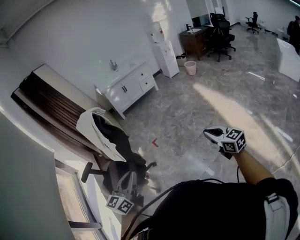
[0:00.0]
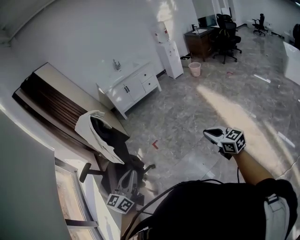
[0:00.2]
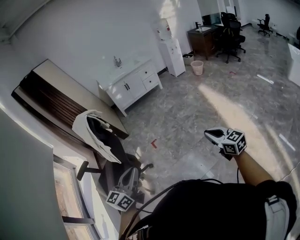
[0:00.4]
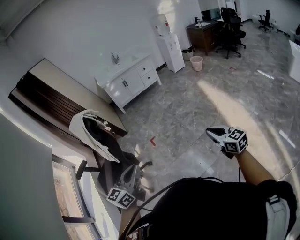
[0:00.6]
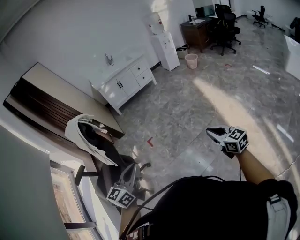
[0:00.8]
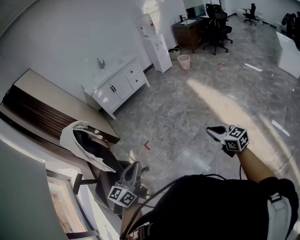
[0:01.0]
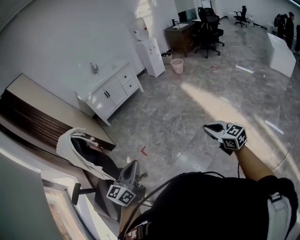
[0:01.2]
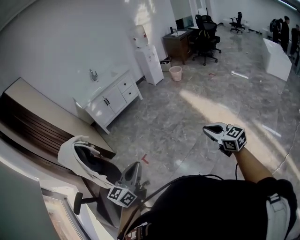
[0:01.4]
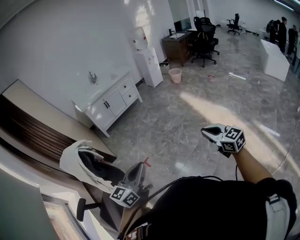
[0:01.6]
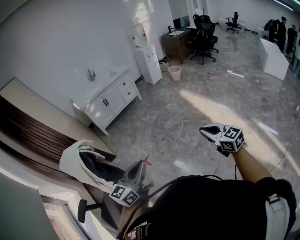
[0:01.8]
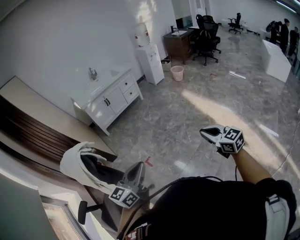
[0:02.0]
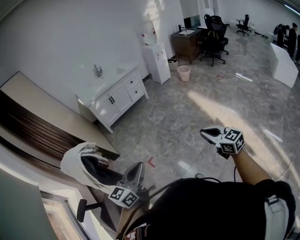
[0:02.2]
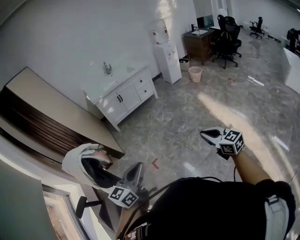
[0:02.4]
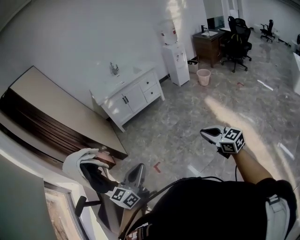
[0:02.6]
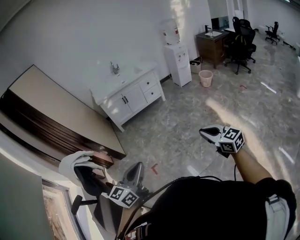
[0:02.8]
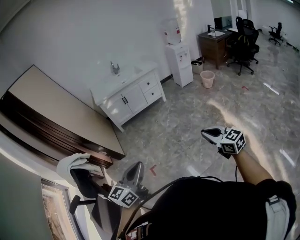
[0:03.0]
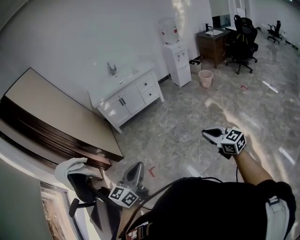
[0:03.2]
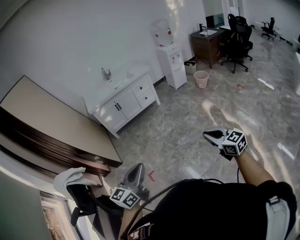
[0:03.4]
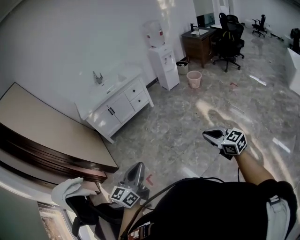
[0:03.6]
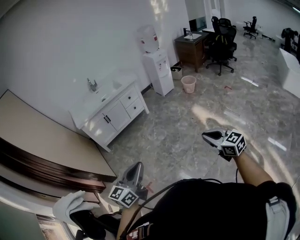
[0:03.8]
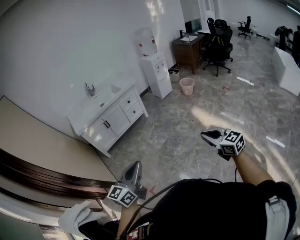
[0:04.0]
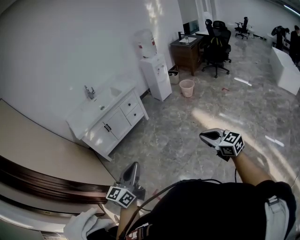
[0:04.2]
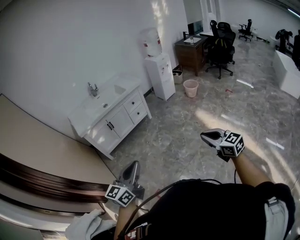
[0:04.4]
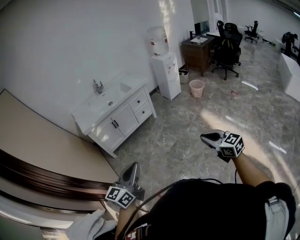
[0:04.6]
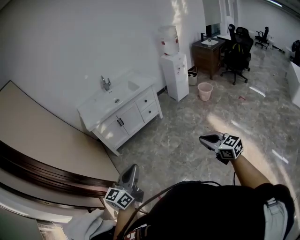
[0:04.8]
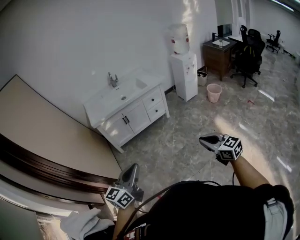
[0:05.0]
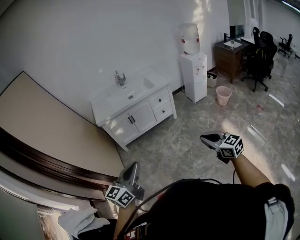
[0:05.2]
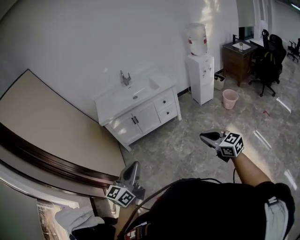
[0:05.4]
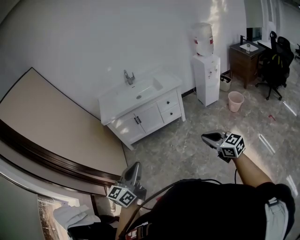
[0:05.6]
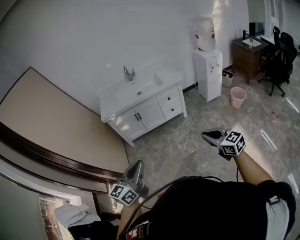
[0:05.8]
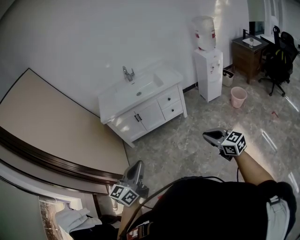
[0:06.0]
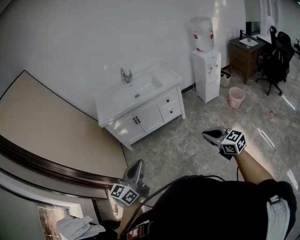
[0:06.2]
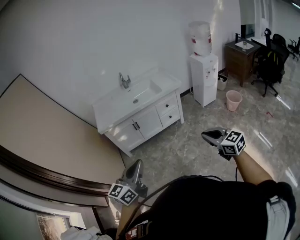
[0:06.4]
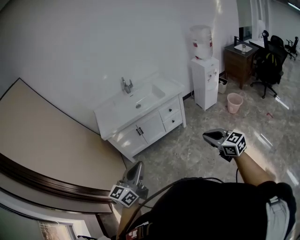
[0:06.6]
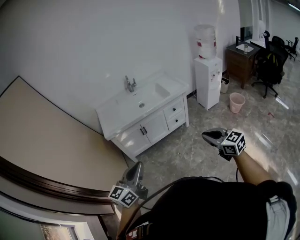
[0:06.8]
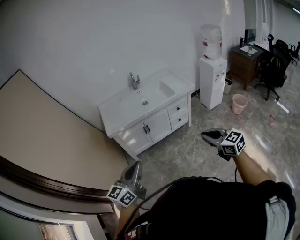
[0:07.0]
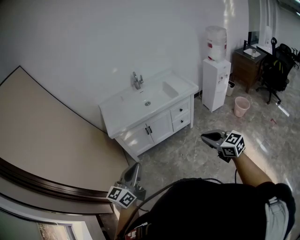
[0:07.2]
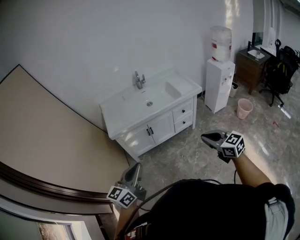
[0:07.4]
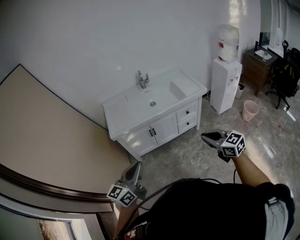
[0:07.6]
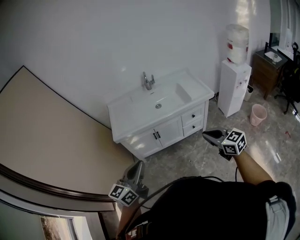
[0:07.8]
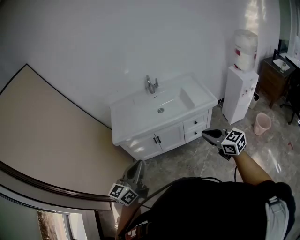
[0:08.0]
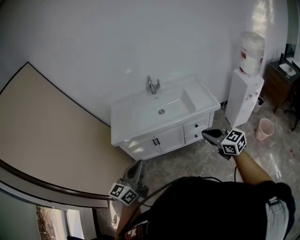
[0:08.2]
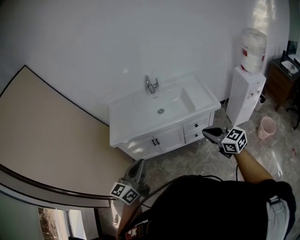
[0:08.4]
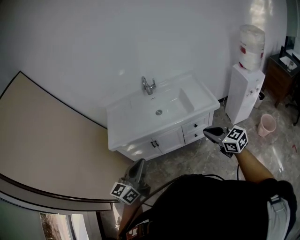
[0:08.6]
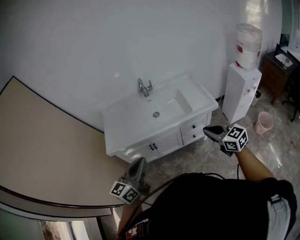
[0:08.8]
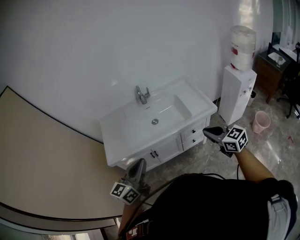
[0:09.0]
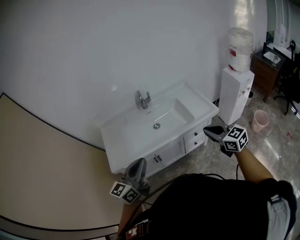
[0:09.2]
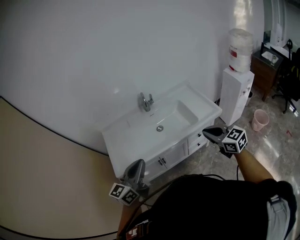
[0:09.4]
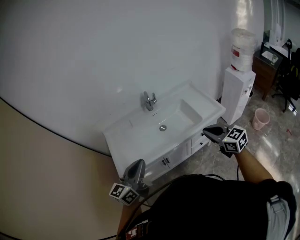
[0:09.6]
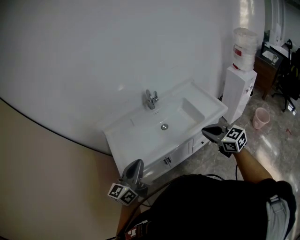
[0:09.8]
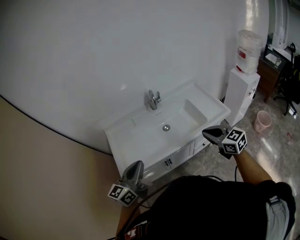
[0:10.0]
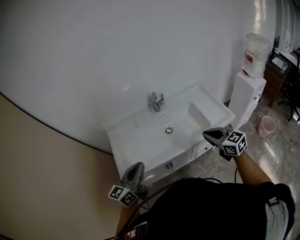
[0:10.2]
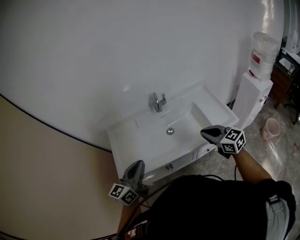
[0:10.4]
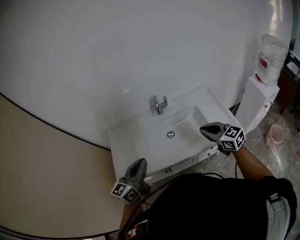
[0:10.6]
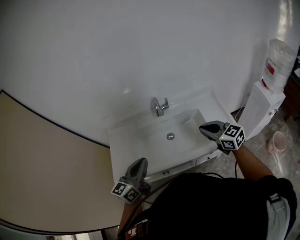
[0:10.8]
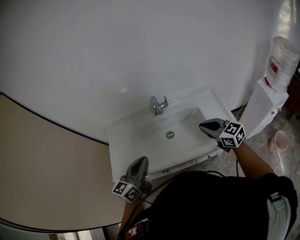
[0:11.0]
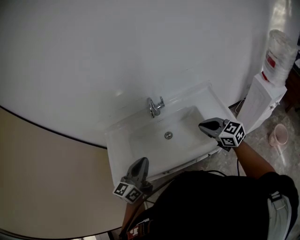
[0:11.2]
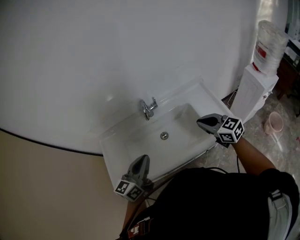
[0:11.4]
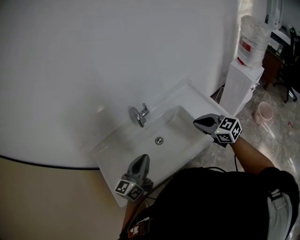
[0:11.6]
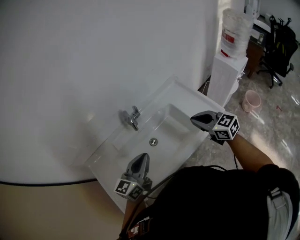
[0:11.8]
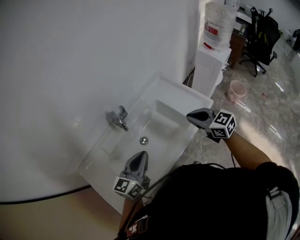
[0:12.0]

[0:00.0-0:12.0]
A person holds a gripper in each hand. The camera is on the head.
0:00.0 to 0:01.6: Both grippers travel together forward, about 30 cm.
0:01.6 to 0:03.0: The left gripper heads forward and to the right, covering roughly 25 cm. Meanwhile the right gripper heads forward, covering about 35 cm.
0:03.0 to 0:04.4: The left gripper heads forward, covering some 30 cm, while the right gripper moves forward and to the left, roughly 25 cm.
0:04.4 to 0:06.0: The right gripper changes place by roughly 35 cm, and changes its angle by some 30 degrees. The left gripper changes place by approximately 20 cm, and changes its angle by some 20 degrees.
0:06.0 to 0:07.6: The two grippers go approximately 35 cm forward and to the left.
0:07.6 to 0:09.0: The two grippers go roughly 30 cm forward and to the right.
0:09.0 to 0:10.4: The grippers both shift forward and to the left by about 25 cm.
0:10.4 to 0:12.0: The right gripper changes place by approximately 15 cm, and changes its angle by roughly 20 degrees. Meanwhile the left gripper moves about 25 cm, and swivels about 30 degrees.

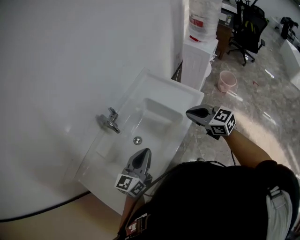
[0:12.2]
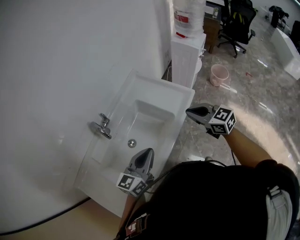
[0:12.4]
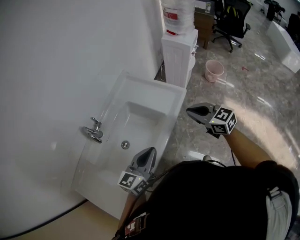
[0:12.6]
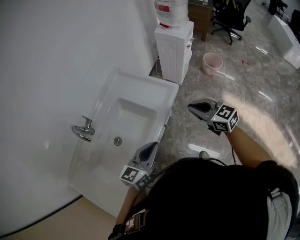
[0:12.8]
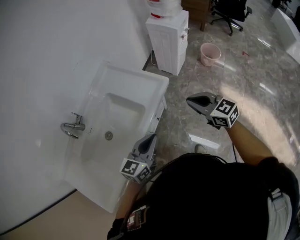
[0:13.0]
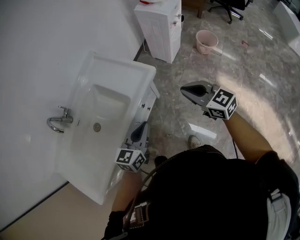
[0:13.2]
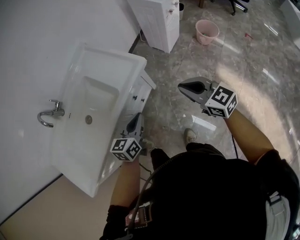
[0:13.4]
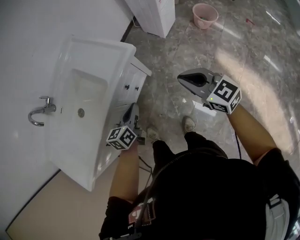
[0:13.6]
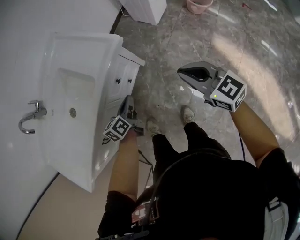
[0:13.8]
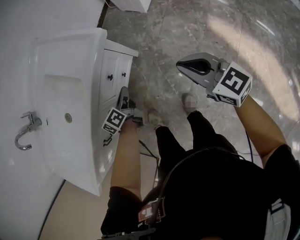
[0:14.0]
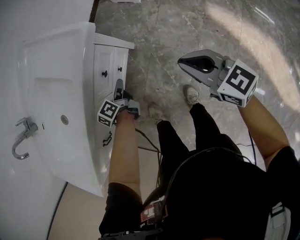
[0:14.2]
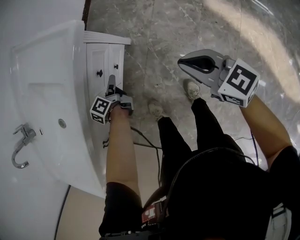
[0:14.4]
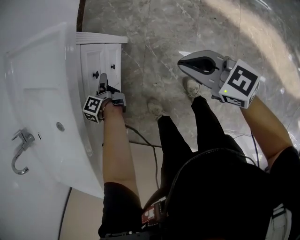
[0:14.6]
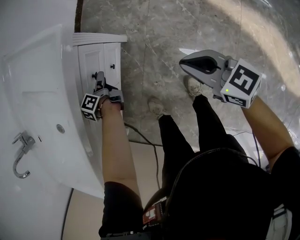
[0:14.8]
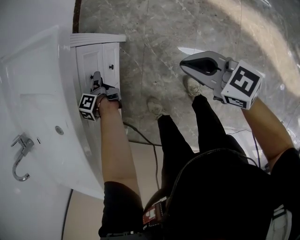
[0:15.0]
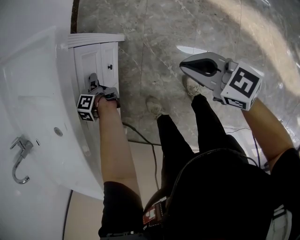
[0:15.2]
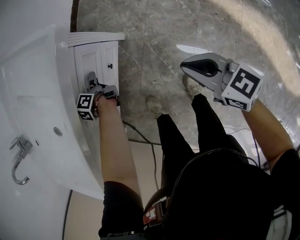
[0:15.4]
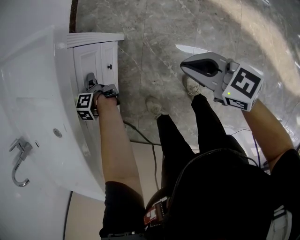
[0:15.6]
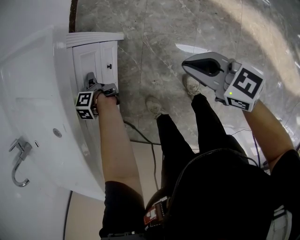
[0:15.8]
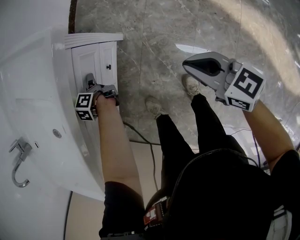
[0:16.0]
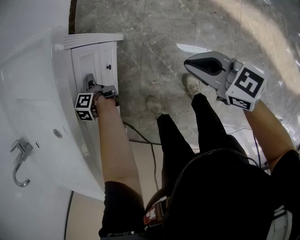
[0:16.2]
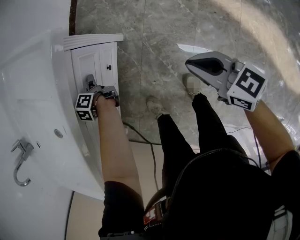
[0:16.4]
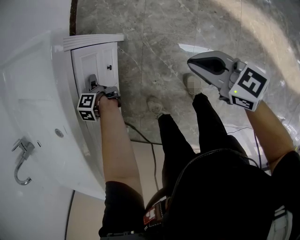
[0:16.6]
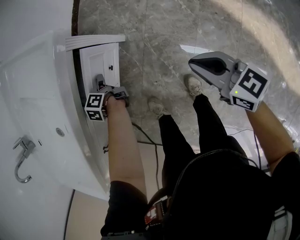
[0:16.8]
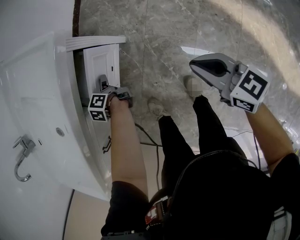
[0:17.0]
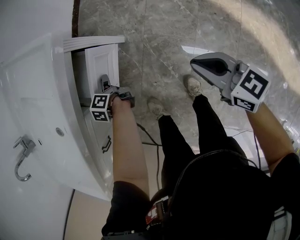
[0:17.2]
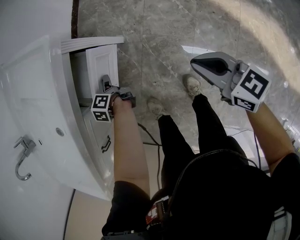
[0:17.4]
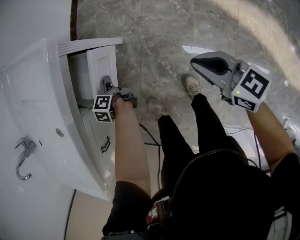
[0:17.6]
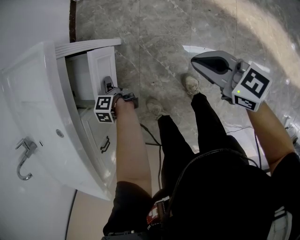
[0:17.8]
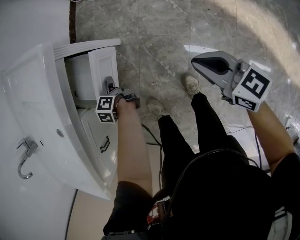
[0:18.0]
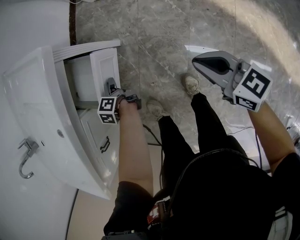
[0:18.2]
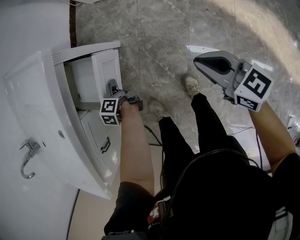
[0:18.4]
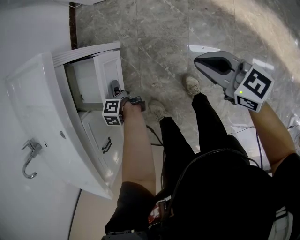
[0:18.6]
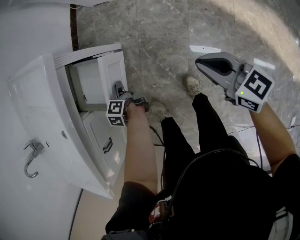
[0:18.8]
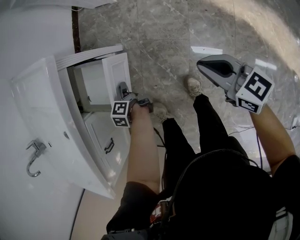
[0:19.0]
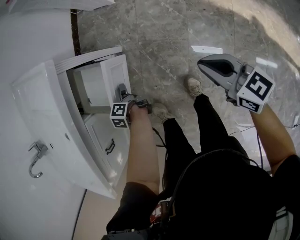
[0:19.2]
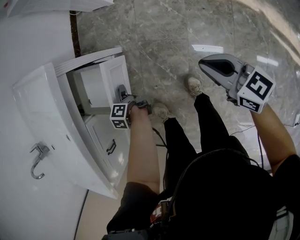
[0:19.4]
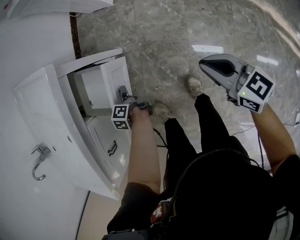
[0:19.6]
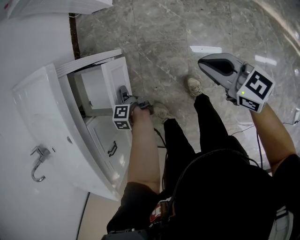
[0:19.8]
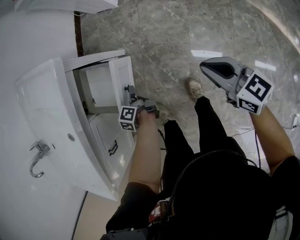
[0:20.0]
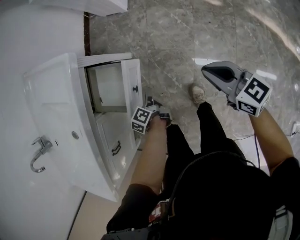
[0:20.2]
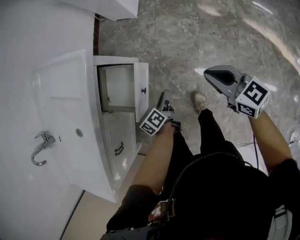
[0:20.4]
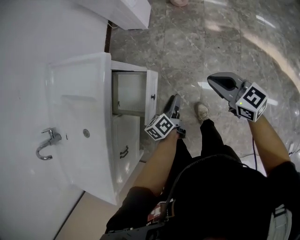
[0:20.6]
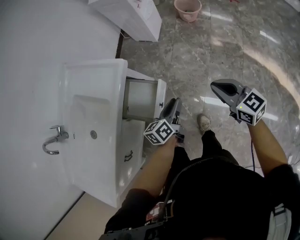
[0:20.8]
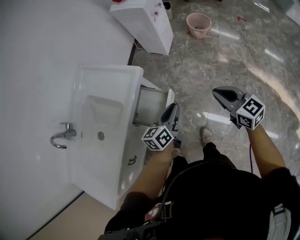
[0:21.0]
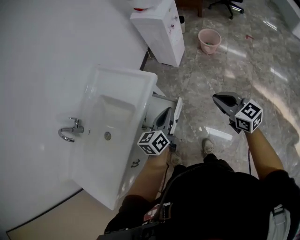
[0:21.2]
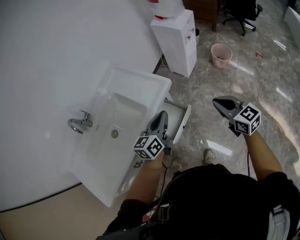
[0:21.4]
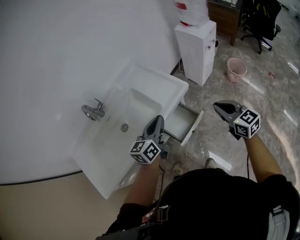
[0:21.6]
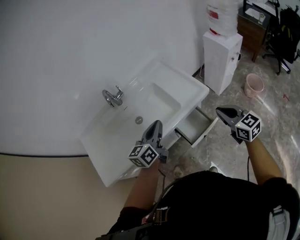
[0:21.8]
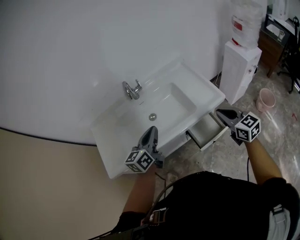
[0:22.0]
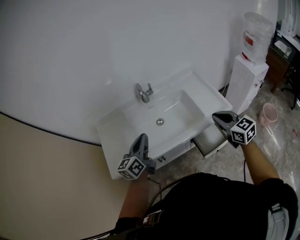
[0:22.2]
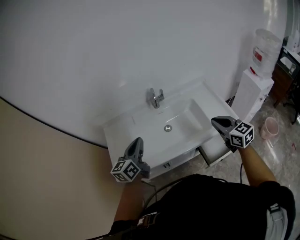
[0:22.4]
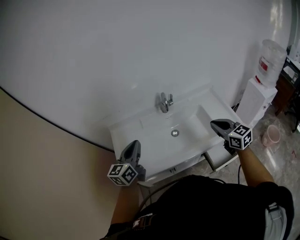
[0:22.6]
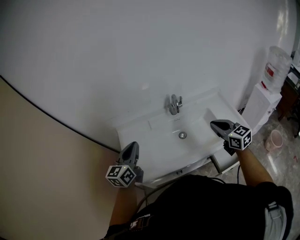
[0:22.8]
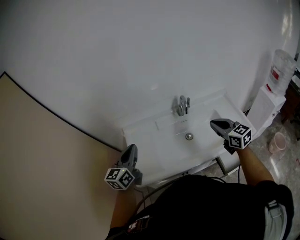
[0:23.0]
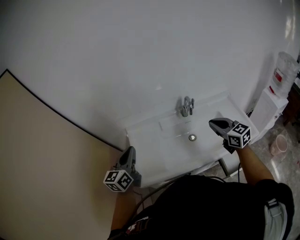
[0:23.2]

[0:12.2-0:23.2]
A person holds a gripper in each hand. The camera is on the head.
0:12.2 to 0:13.8: The two grippers go roughly 50 cm to the right and downward. The left gripper turns by approximately 40 degrees.
0:13.8 to 0:15.4: The right gripper is displaced downward by about 20 cm. Meanwhile the left gripper heads downward and forward, covering approximately 25 cm, changes its angle by approximately 40 degrees, and opens up.
0:15.4 to 0:17.0: The left gripper changes place by roughly 5 cm.
0:17.0 to 0:18.4: The grippers both shift backward and to the right by roughly 10 cm.
0:18.4 to 0:20.0: The left gripper is displaced backward by approximately 5 cm.
0:20.0 to 0:21.6: The left gripper shifts some 50 cm upward, points its fingers about 30 degrees further upward, and closes its fingers; the right gripper heads upward and to the left, covering approximately 40 cm, and turns by some 30 degrees.
0:21.6 to 0:23.2: Both grippers are carried approximately 60 cm. The left gripper swivels roughly 40 degrees. Meanwhile the right gripper rotates roughly 30 degrees.

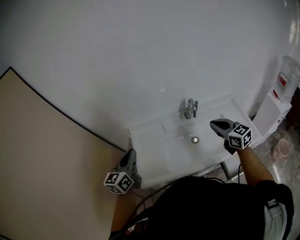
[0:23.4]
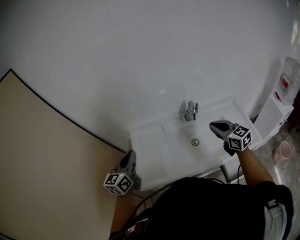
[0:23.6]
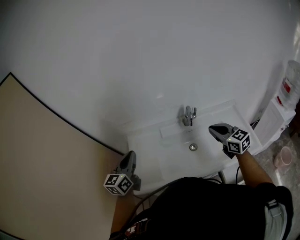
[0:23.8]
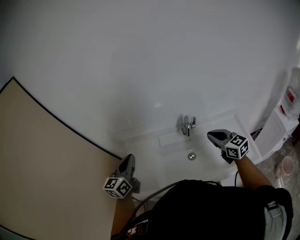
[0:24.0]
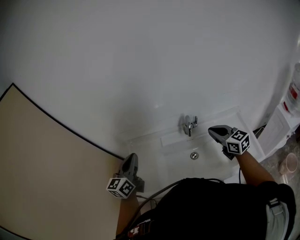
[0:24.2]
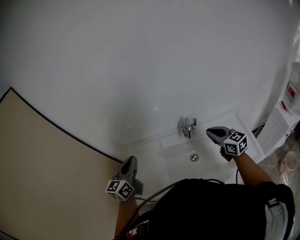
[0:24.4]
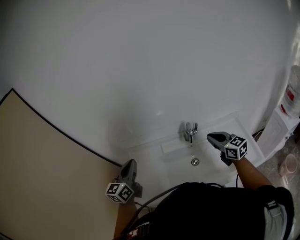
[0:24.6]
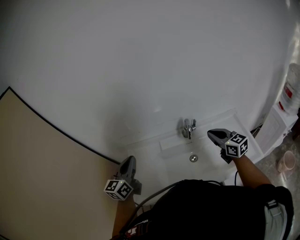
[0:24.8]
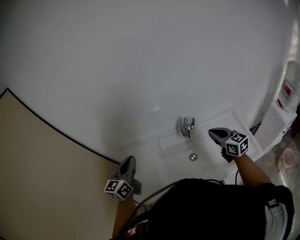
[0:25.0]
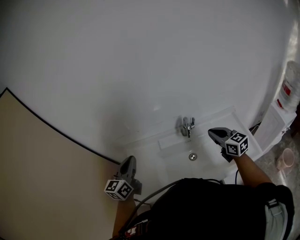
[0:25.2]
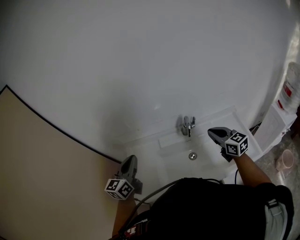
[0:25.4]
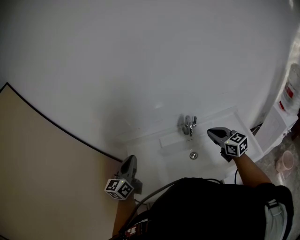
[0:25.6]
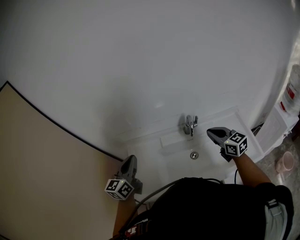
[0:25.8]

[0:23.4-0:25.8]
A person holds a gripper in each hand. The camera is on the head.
0:23.4 to 0:24.6: The right gripper goes roughly 10 cm forward and to the right. Meanwhile the left gripper goes some 10 cm to the right and forward.
0:24.6 to 0:25.8: There are only small adjustments of the grippers.
